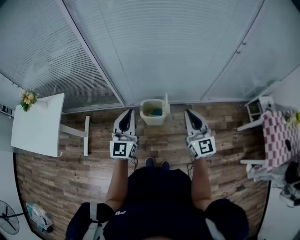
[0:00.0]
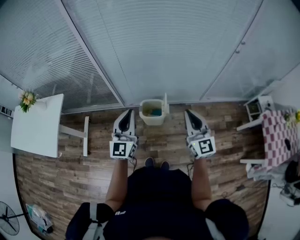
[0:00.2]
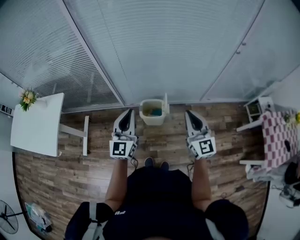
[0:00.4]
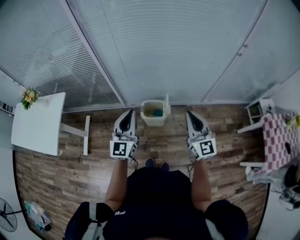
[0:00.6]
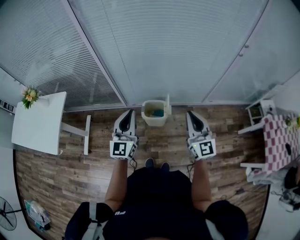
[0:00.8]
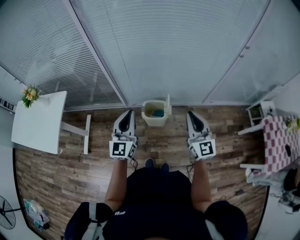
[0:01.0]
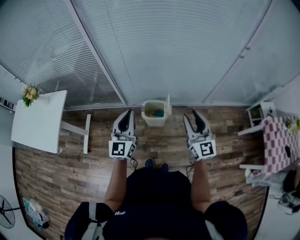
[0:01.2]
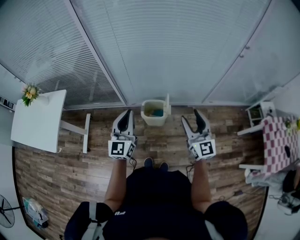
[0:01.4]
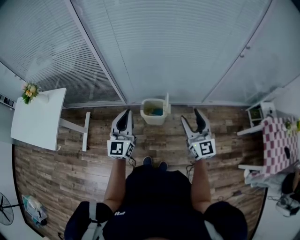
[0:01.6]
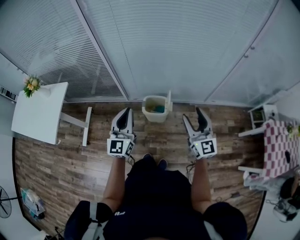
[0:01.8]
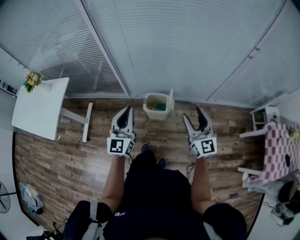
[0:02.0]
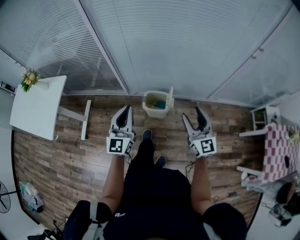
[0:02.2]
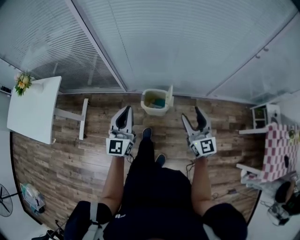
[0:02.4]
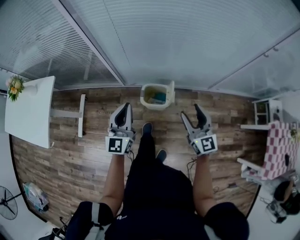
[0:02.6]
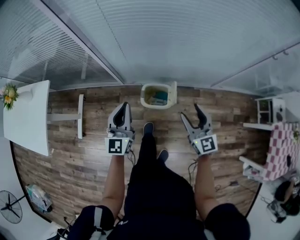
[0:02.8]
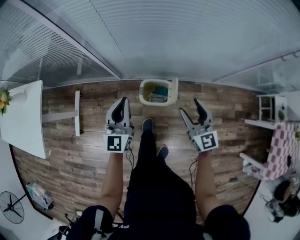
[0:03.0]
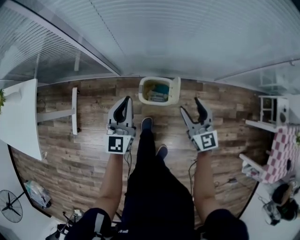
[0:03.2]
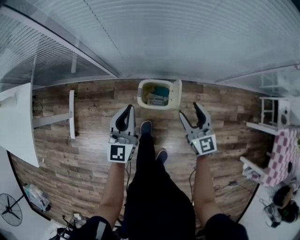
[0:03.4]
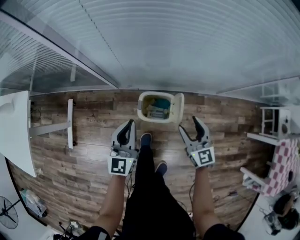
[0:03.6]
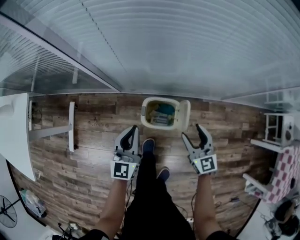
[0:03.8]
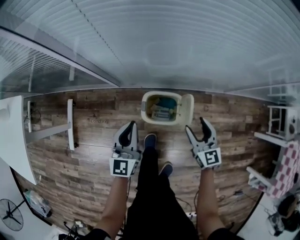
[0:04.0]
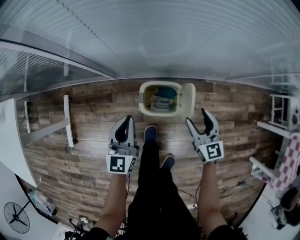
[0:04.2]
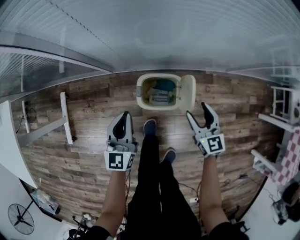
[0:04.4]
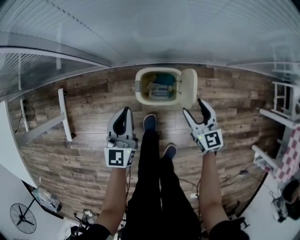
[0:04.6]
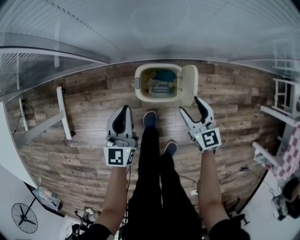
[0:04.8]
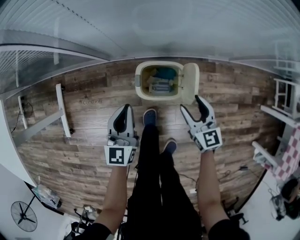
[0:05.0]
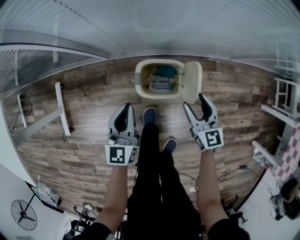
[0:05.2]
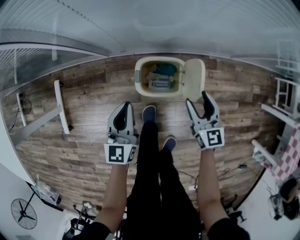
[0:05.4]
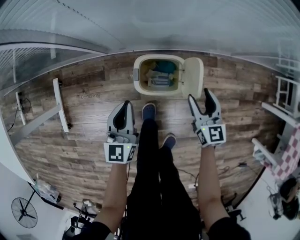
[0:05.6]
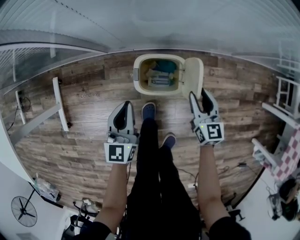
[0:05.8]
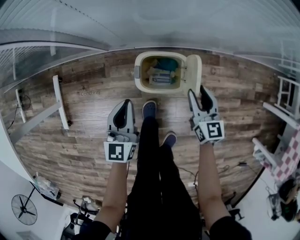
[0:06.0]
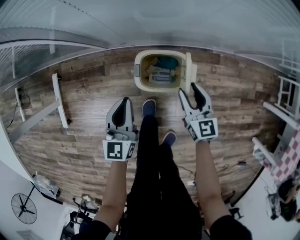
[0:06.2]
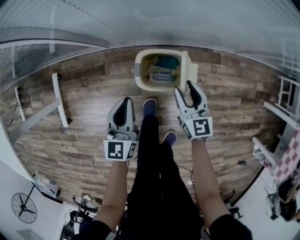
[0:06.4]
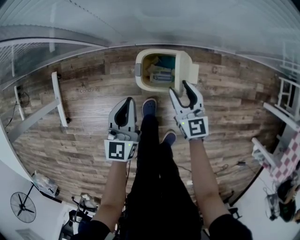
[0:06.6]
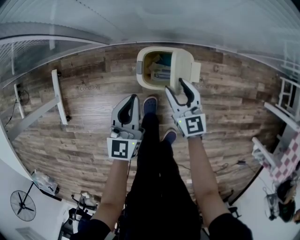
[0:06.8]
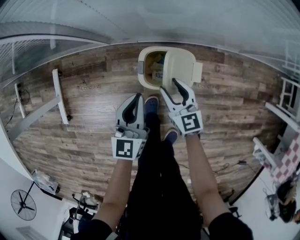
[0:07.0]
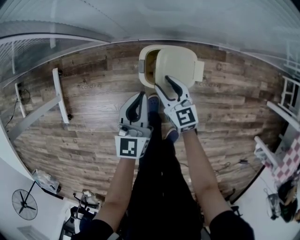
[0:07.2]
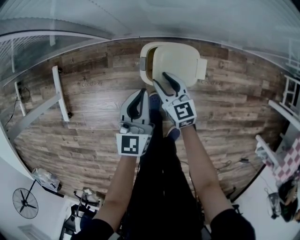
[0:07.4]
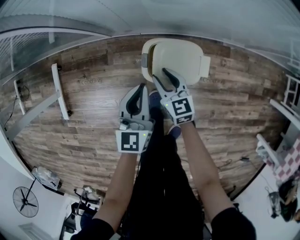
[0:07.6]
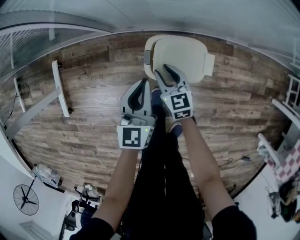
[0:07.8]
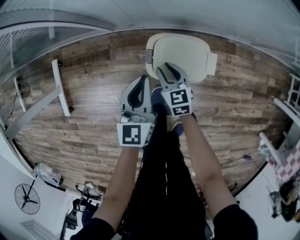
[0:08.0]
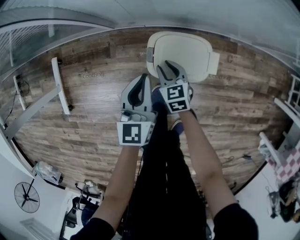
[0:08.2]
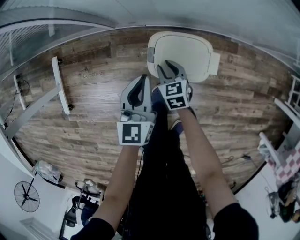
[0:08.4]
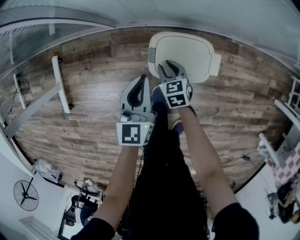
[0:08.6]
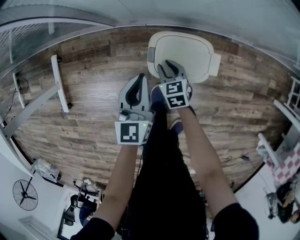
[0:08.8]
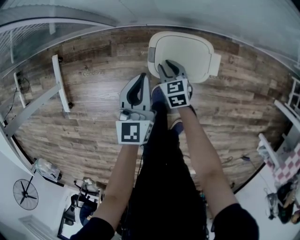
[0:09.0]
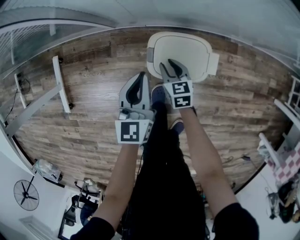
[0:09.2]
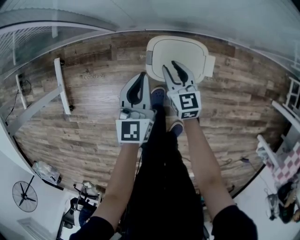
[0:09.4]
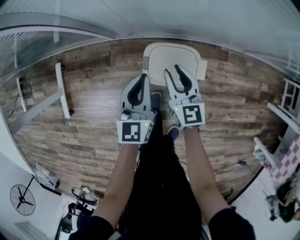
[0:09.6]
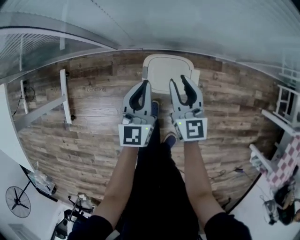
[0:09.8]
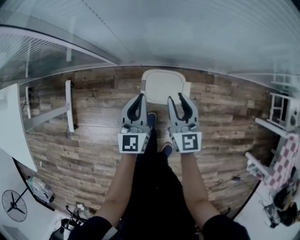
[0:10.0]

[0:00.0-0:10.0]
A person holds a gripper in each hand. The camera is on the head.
0:00.0 to 0:01.4: The right gripper opens.
0:01.4 to 0:02.8: The left gripper heads forward and downward, covering some 15 cm. Meanwhile the right gripper shifts some 20 cm downward and forward.
0:02.8 to 0:04.2: Both grippers move downward, roughly 25 cm.
0:04.2 to 0:05.8: Both grippers travel together downward, roughly 10 cm. The right gripper closes up.
0:05.8 to 0:07.2: The right gripper is displaced to the left by approximately 15 cm.
0:07.2 to 0:08.6: The left gripper changes place by some 5 cm. The right gripper travels downward by some 15 cm, and turns by roughly 30 degrees.
0:08.6 to 0:10.0: The right gripper shifts roughly 35 cm upward, and points its fingers about 40 degrees further upward. Meanwhile the left gripper is displaced upward by roughly 15 cm.

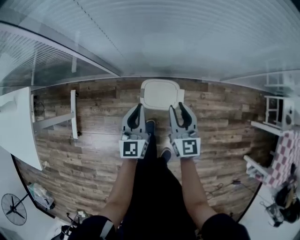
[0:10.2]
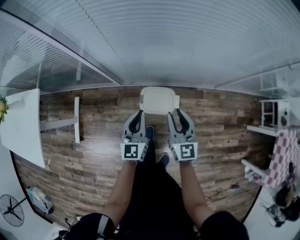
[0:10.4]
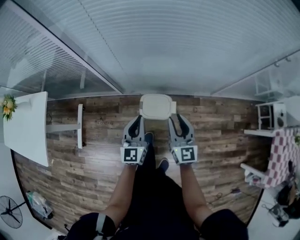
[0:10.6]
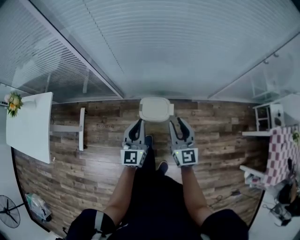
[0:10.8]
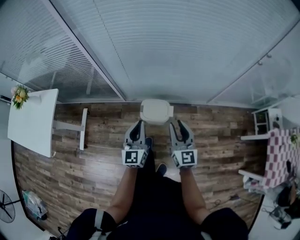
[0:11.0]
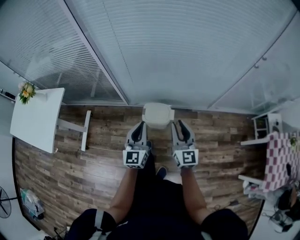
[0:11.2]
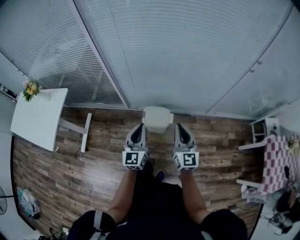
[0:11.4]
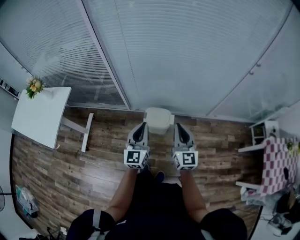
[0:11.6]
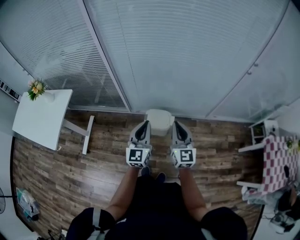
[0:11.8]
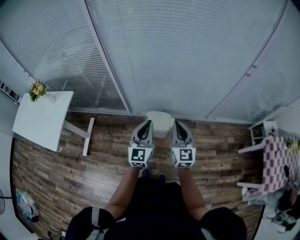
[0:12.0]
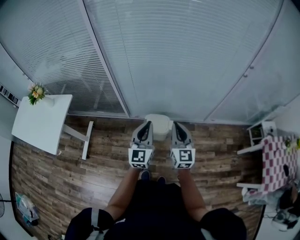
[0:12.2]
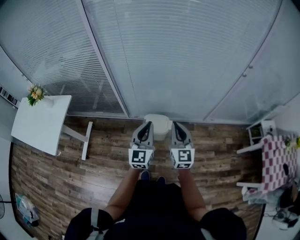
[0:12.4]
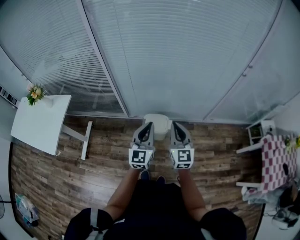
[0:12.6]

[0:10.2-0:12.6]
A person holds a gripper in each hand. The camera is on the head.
0:10.2 to 0:11.4: Both grippers move upward and backward, approximately 25 cm. The right gripper closes its fingers.
0:11.4 to 0:12.6: The left gripper shifts approximately 5 cm upward.

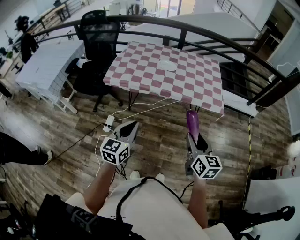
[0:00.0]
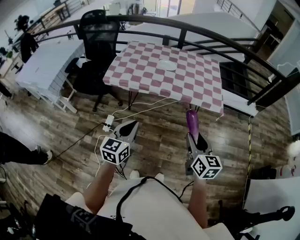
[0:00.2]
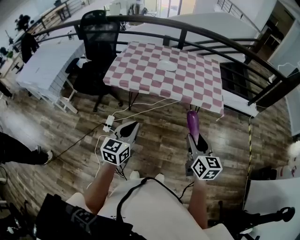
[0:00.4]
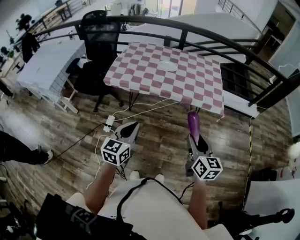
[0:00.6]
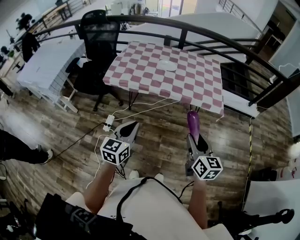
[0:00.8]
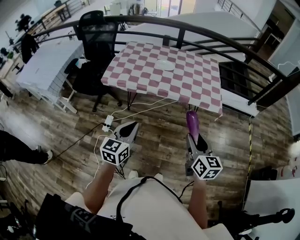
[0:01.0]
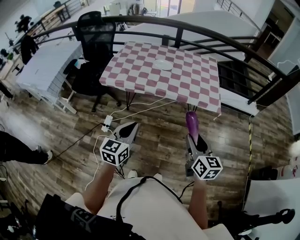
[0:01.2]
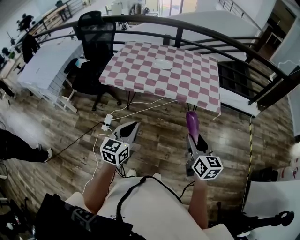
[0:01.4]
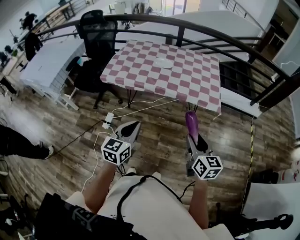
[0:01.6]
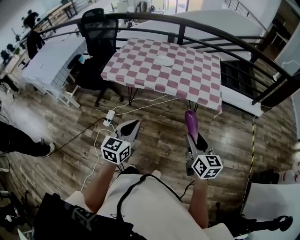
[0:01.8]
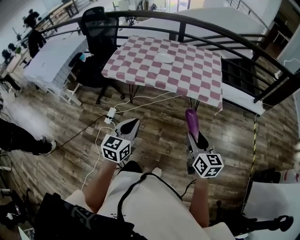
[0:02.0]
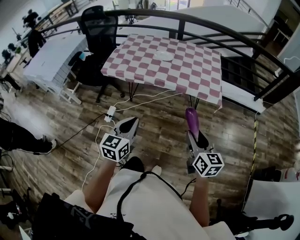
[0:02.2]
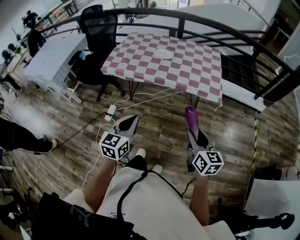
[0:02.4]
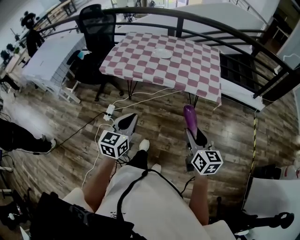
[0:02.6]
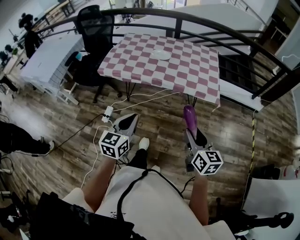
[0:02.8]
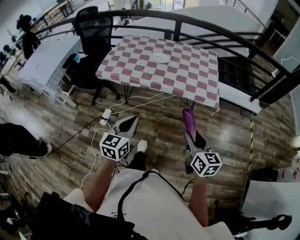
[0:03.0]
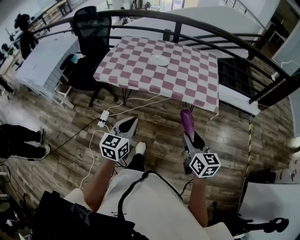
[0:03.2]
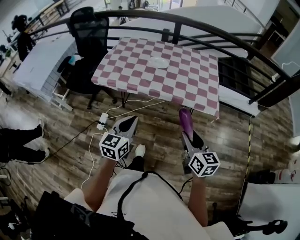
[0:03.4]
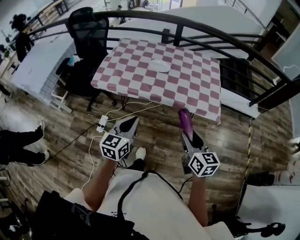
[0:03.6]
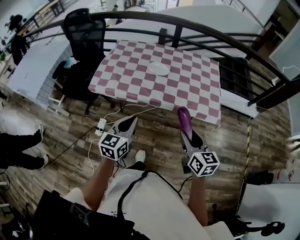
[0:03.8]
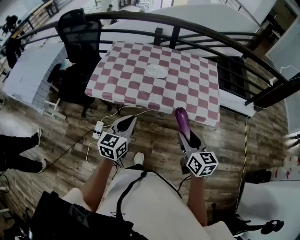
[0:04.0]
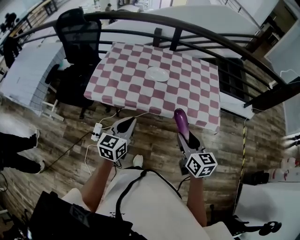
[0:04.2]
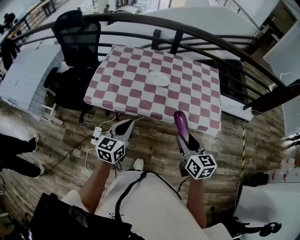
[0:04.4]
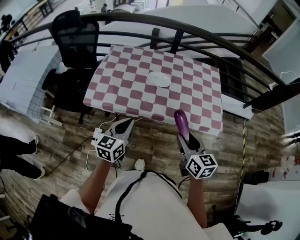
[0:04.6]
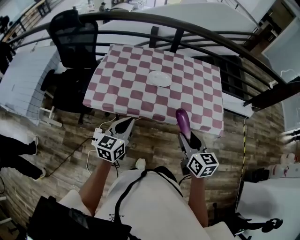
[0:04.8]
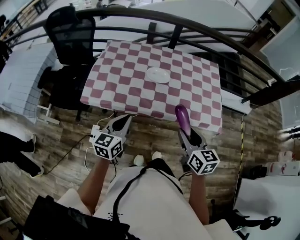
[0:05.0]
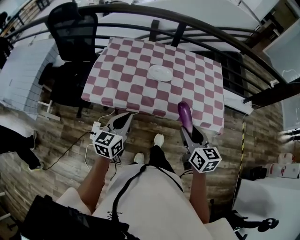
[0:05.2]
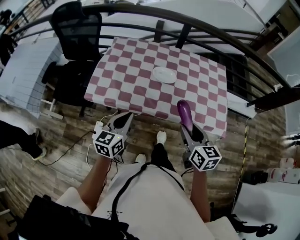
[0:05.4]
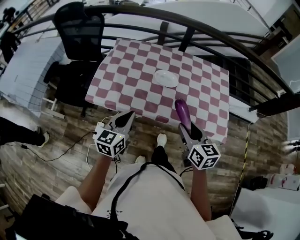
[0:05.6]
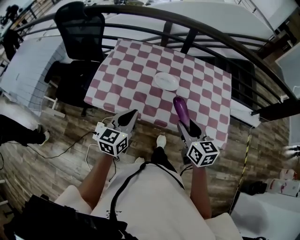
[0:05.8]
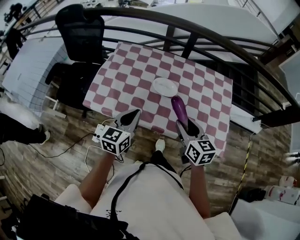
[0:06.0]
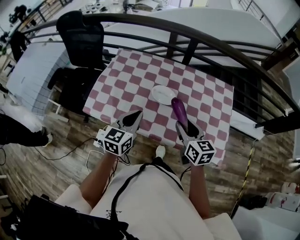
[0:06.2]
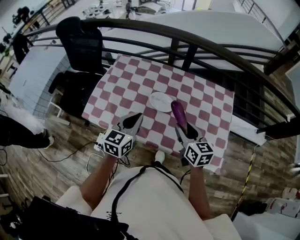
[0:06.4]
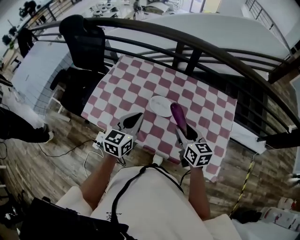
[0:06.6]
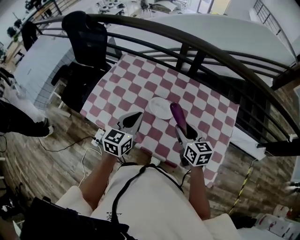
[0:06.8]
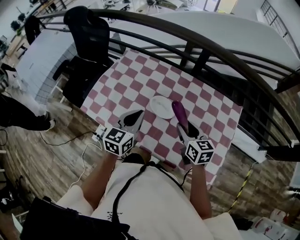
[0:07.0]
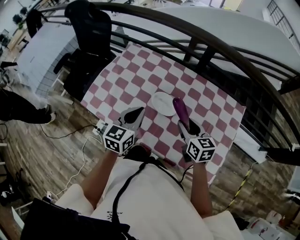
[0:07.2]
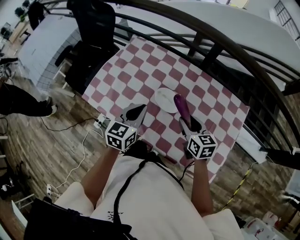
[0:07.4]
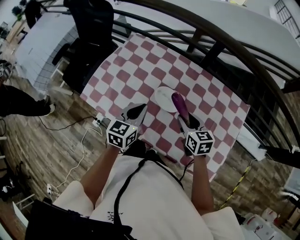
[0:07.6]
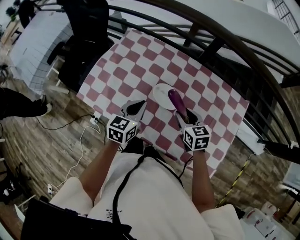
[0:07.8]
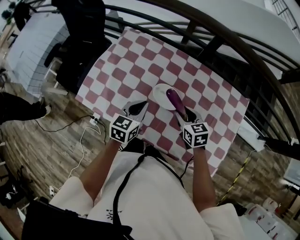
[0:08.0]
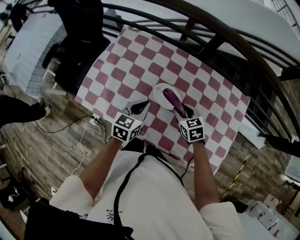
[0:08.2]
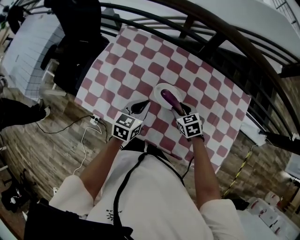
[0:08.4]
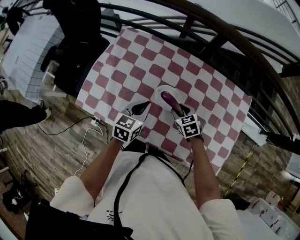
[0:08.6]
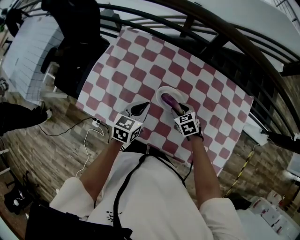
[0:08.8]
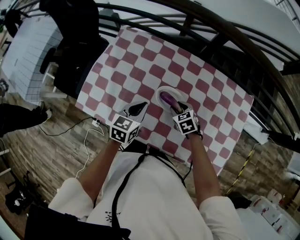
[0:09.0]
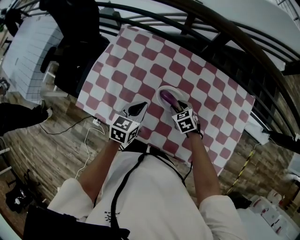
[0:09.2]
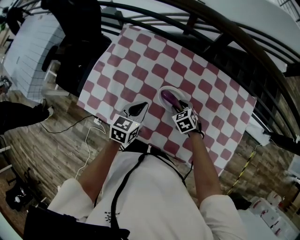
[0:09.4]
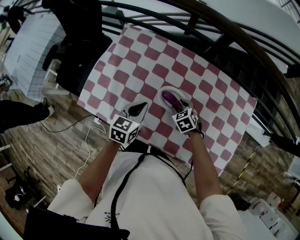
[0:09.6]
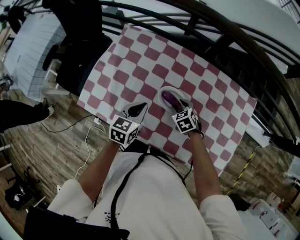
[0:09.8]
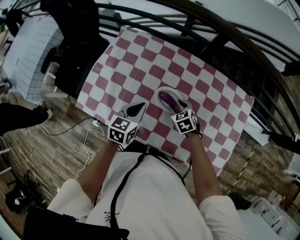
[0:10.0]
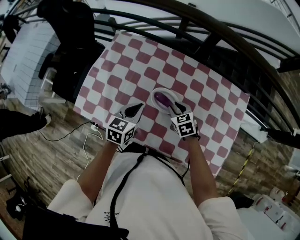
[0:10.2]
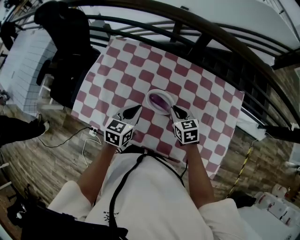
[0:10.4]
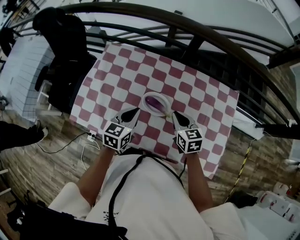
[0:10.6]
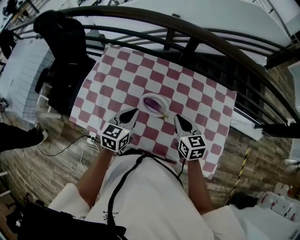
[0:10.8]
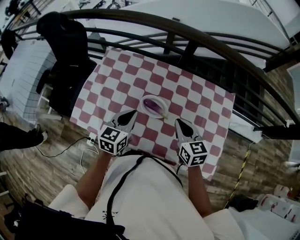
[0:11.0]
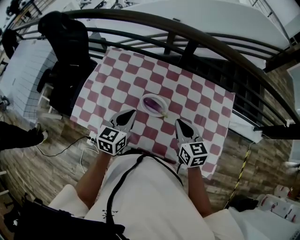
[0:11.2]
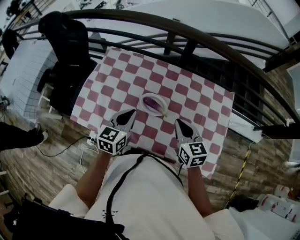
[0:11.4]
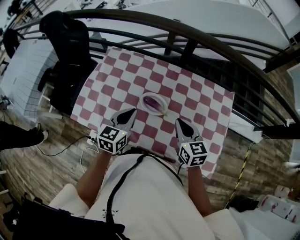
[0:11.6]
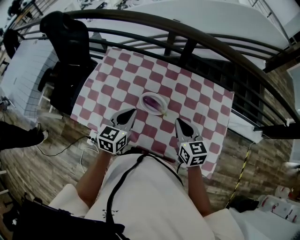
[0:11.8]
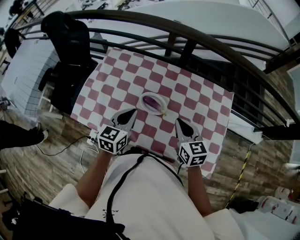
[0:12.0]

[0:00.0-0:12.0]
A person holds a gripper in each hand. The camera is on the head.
0:00.0 to 0:01.6: The two grippers go roughly 10 cm to the right.
0:01.6 to 0:03.0: There are only small adjustments of the grippers.
0:03.0 to 0:04.4: The two grippers go about 30 cm forward and to the left.
0:04.4 to 0:06.0: The grippers both shift forward by approximately 20 cm.
0:06.0 to 0:07.6: The right gripper moves forward and downward, some 20 cm, and swivels roughly 20 degrees; the left gripper goes roughly 15 cm forward and to the right.
0:07.6 to 0:09.0: The right gripper heads downward and forward, covering roughly 15 cm, and swivels about 30 degrees, while the left gripper shifts about 10 cm downward and forward.
0:09.0 to 0:10.4: The right gripper travels upward by some 10 cm, changes its angle by about 20 degrees, and closes up.
0:10.4 to 0:12.0: The right gripper moves upward, backward and to the right, about 15 cm, while the left gripper moves upward, about 5 cm.
